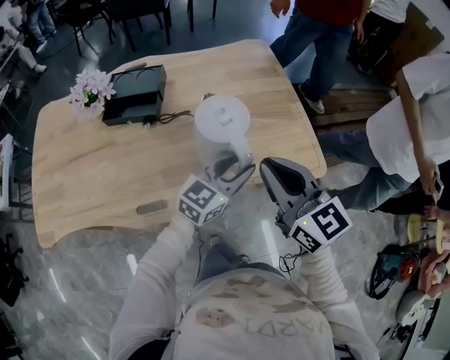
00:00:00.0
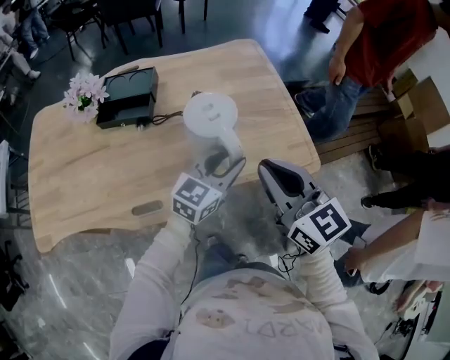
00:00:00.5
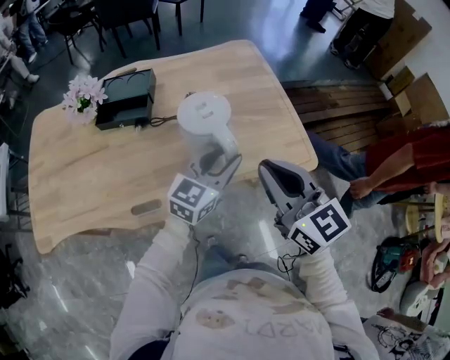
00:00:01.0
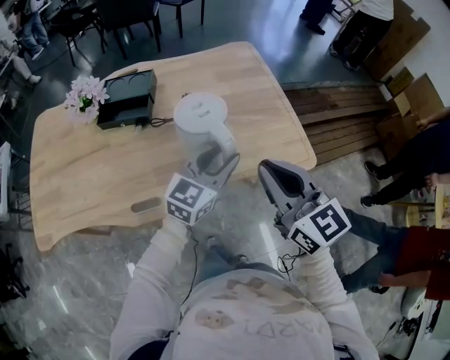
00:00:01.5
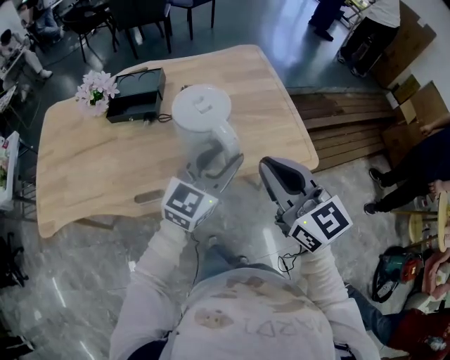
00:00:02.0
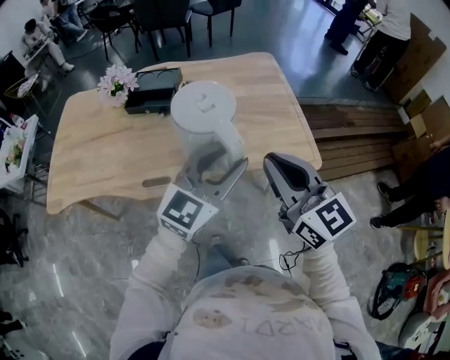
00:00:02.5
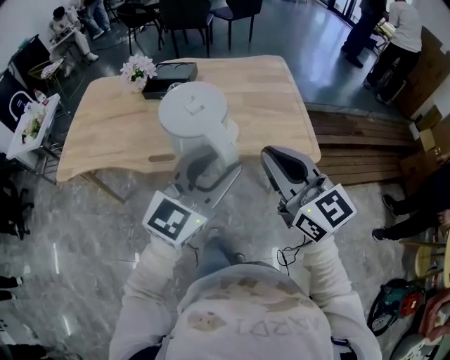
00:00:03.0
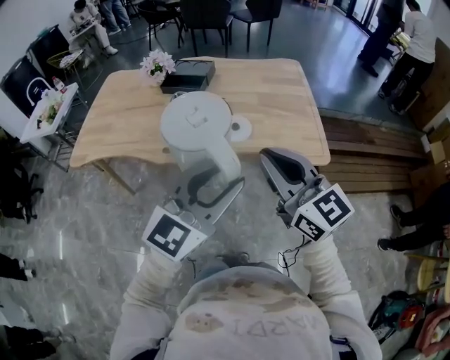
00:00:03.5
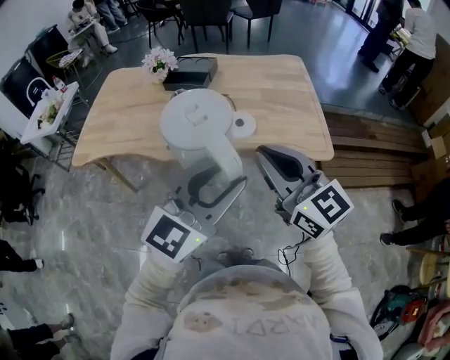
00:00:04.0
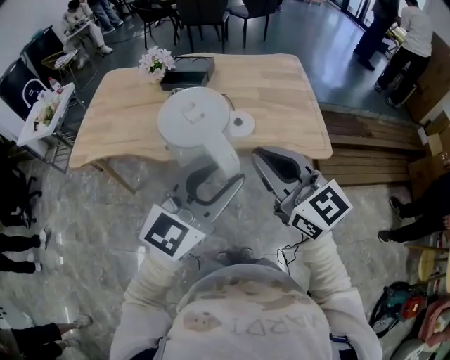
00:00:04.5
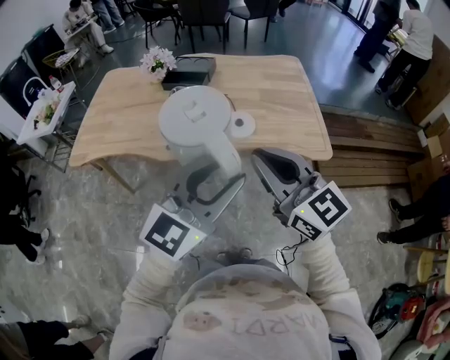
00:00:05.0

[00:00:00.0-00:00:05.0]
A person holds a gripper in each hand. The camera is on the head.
00:00:00.0 to 00:00:02.5: The right gripper heads backward, upward and to the right, covering about 15 cm. Meanwhile the left gripper is displaced upward and backward by some 20 cm, and turns by roughly 20 degrees.
00:00:02.5 to 00:00:05.0: The left gripper is displaced backward by some 20 cm. Meanwhile the right gripper shifts about 15 cm backward and to the left.

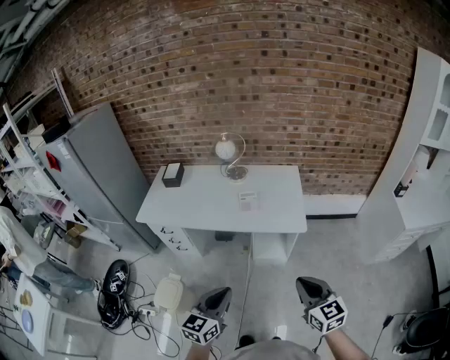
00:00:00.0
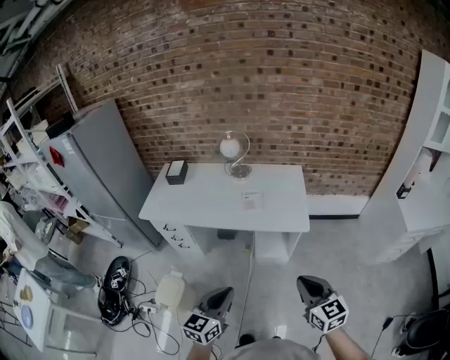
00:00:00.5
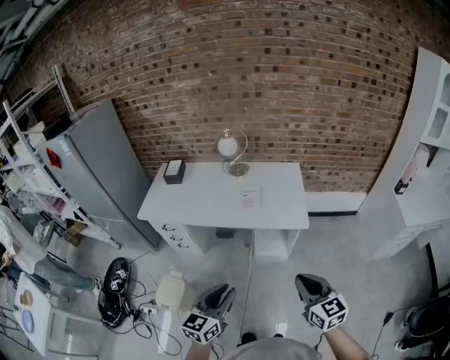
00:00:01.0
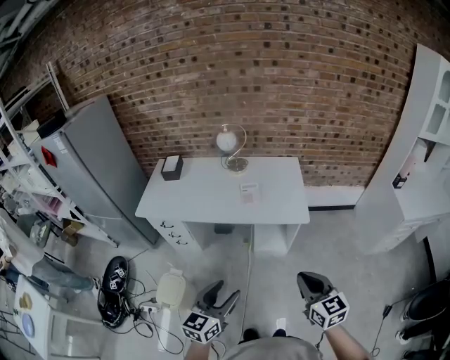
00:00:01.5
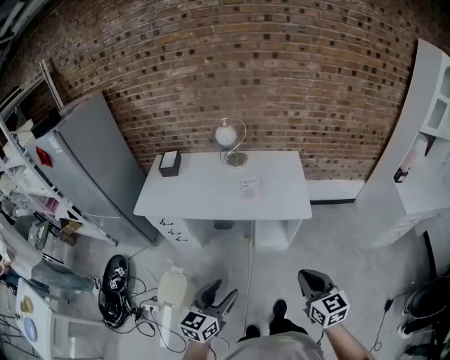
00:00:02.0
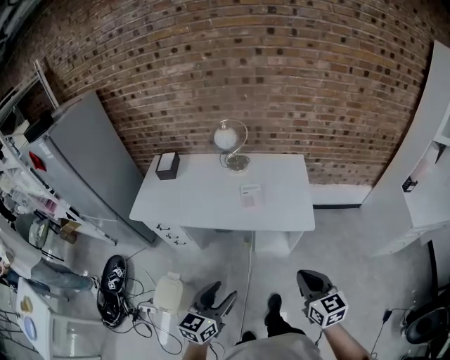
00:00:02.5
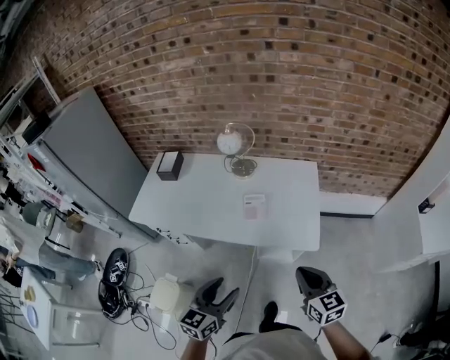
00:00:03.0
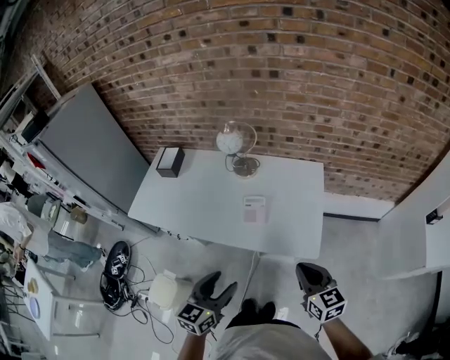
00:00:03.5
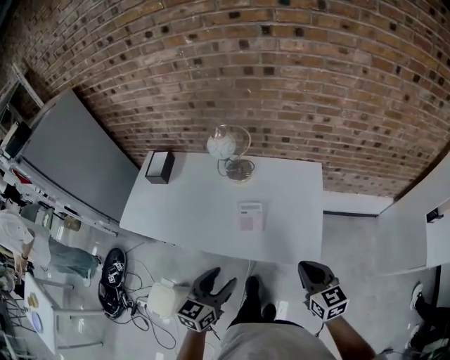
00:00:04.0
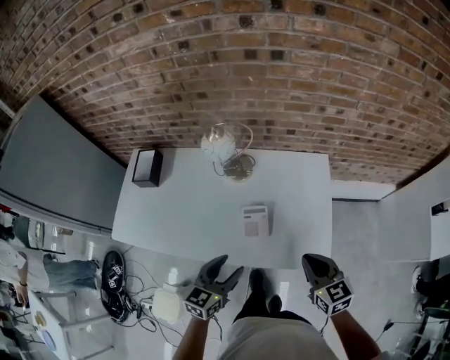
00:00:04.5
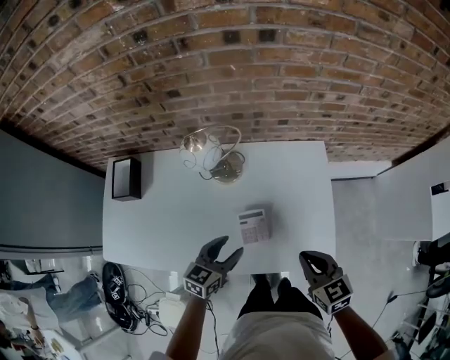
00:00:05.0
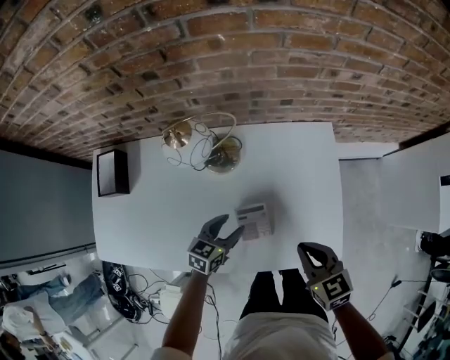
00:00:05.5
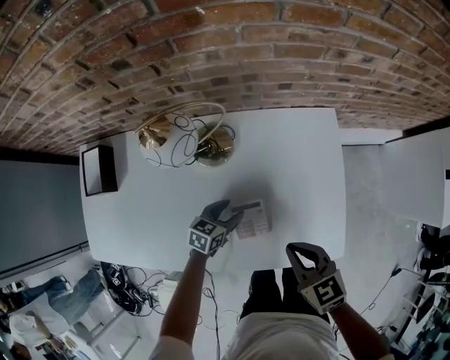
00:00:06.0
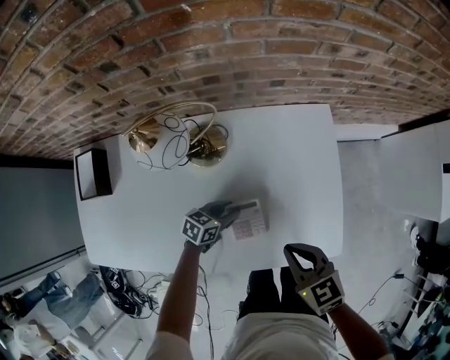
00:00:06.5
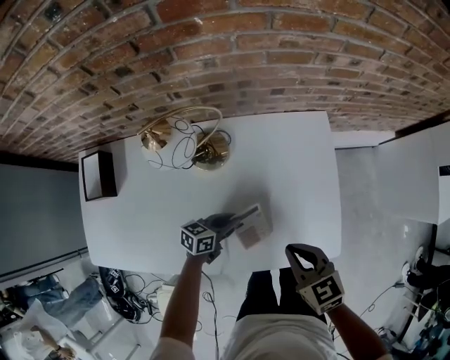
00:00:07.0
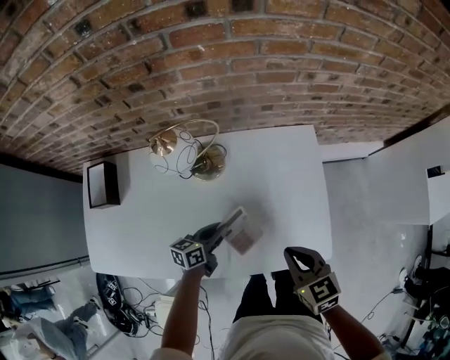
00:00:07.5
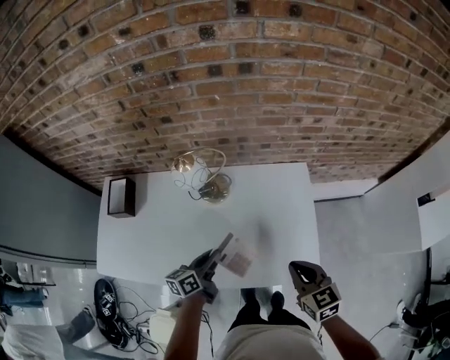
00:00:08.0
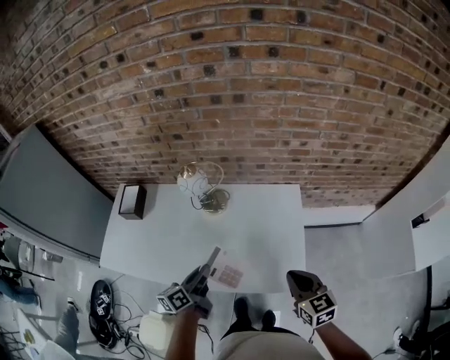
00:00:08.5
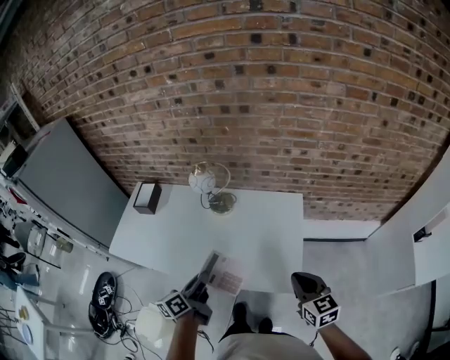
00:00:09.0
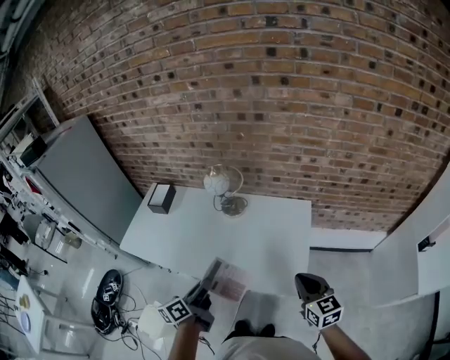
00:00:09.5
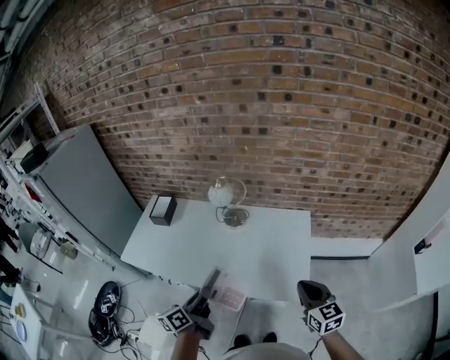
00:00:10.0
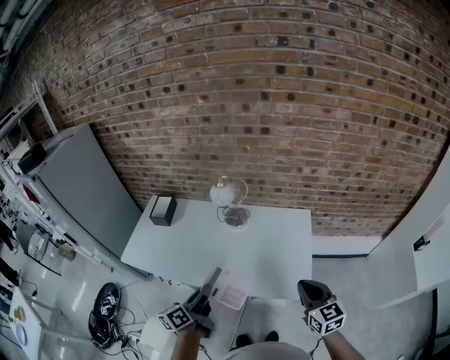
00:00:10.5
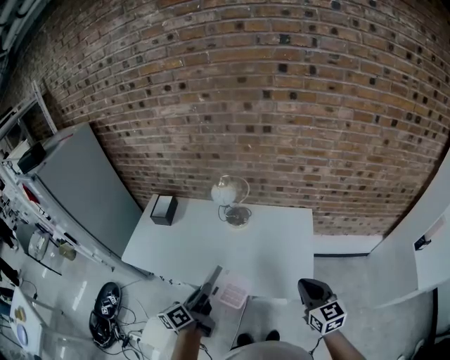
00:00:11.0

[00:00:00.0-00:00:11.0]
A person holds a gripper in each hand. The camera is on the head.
00:00:00.0 to 00:00:02.0: The two grippers go about 5 cm to the left. The left gripper opens.
00:00:02.0 to 00:00:03.5: Both grippers move forward, some 30 cm.
00:00:03.5 to 00:00:05.5: The left gripper goes about 50 cm forward and downward, and swivels some 30 degrees. Meanwhile the right gripper is displaced forward and downward by some 30 cm.
00:00:05.5 to 00:00:07.5: The left gripper goes downward and returns, approximately 10 cm each way, swivels about 20 degrees, and closes.
00:00:07.5 to 00:00:09.0: The left gripper goes some 35 cm upward and backward, and turns by approximately 40 degrees; the right gripper moves to the right, upward and backward, roughly 25 cm.
00:00:09.0 to 00:00:11.0: The left gripper shifts roughly 10 cm to the left and backward. The right gripper goes some 5 cm to the left.

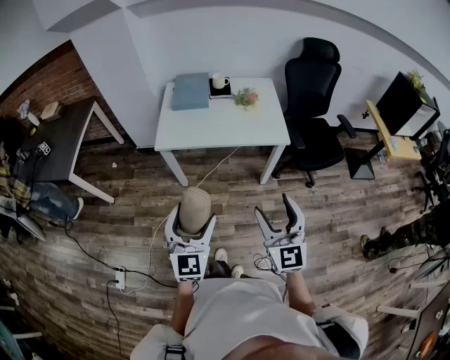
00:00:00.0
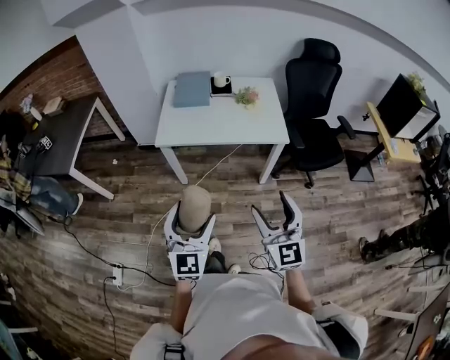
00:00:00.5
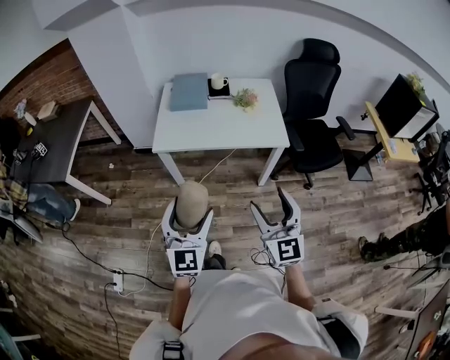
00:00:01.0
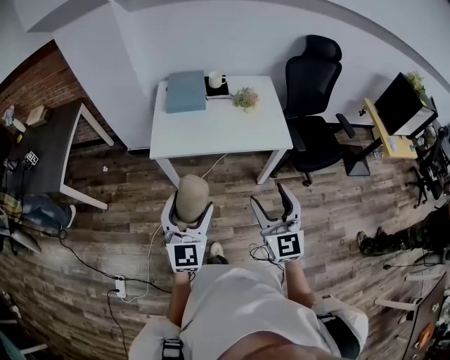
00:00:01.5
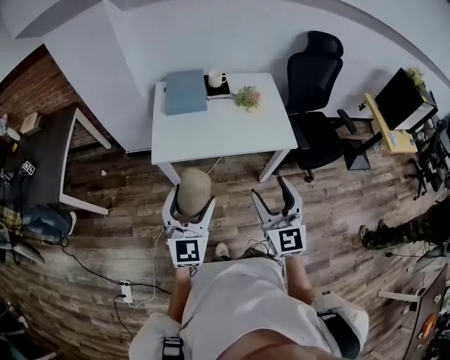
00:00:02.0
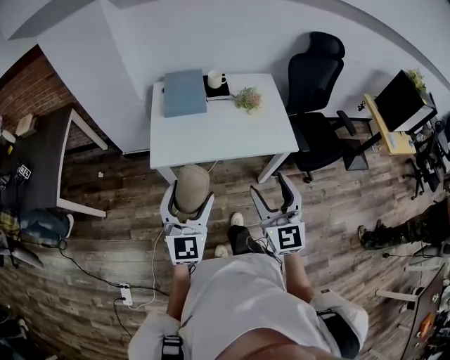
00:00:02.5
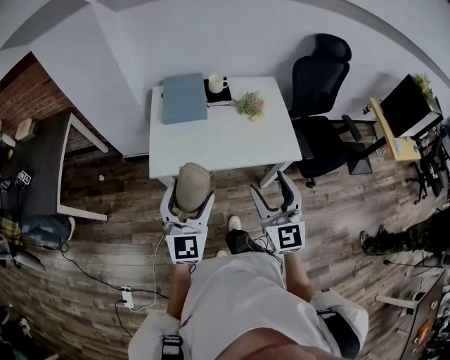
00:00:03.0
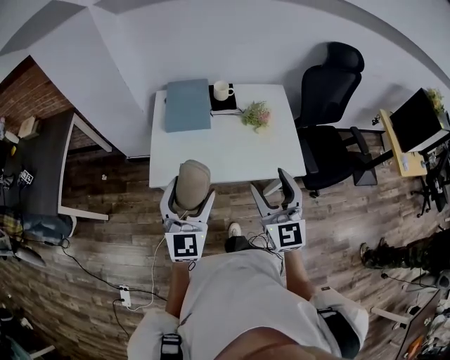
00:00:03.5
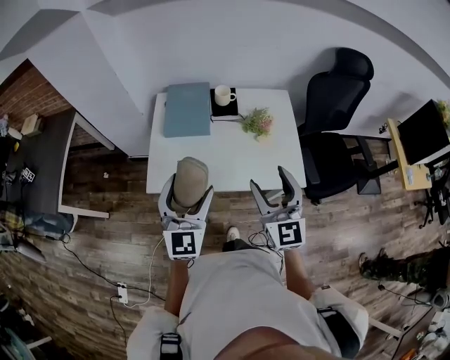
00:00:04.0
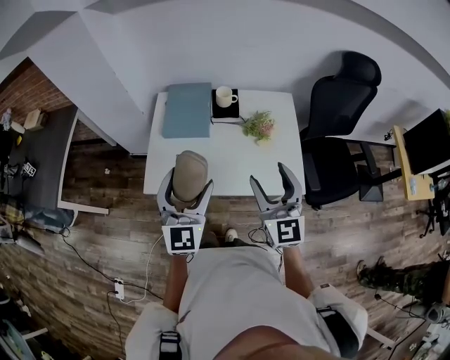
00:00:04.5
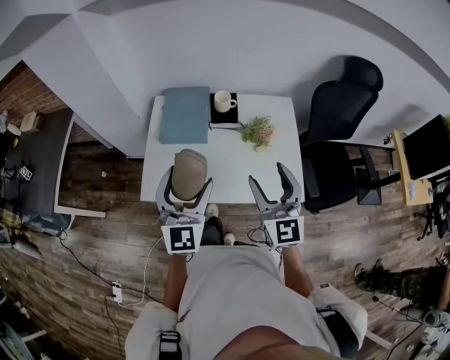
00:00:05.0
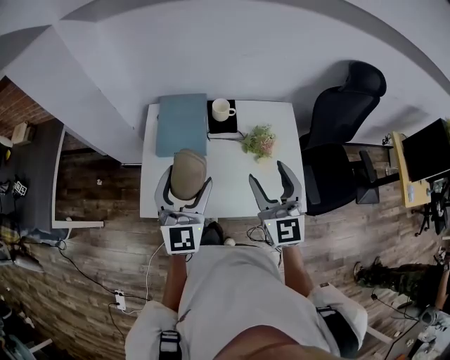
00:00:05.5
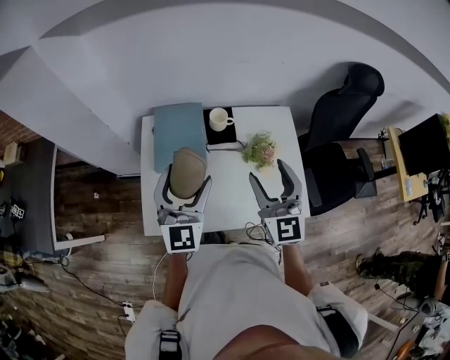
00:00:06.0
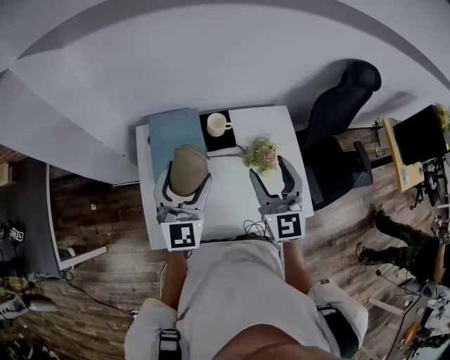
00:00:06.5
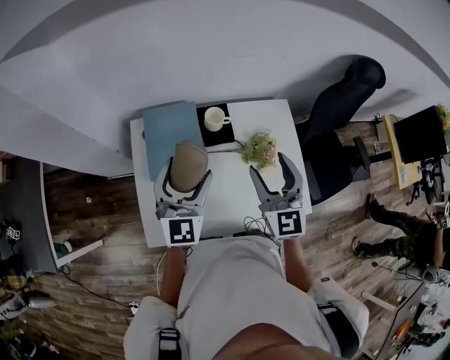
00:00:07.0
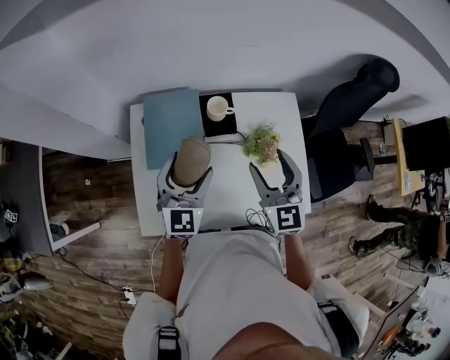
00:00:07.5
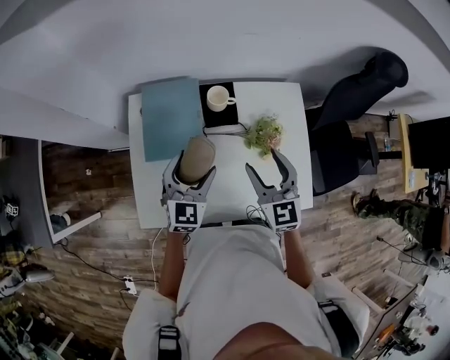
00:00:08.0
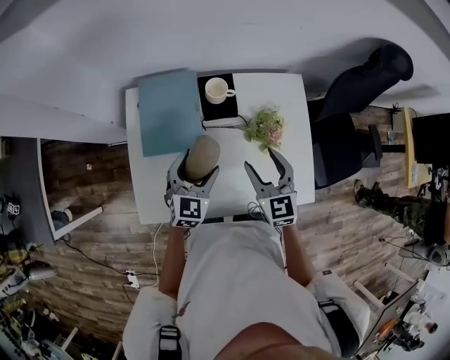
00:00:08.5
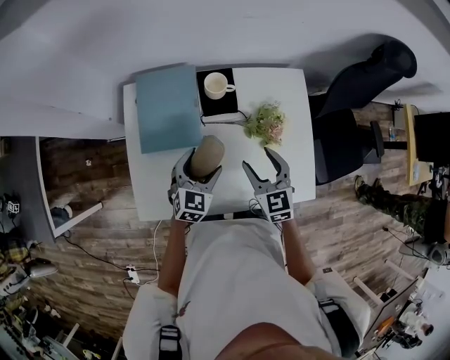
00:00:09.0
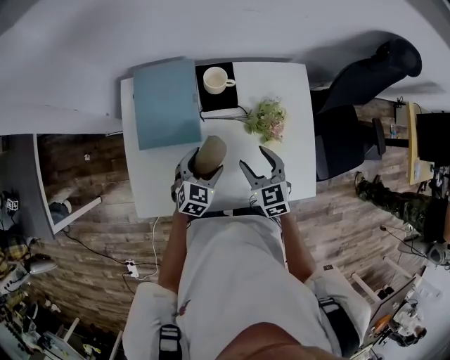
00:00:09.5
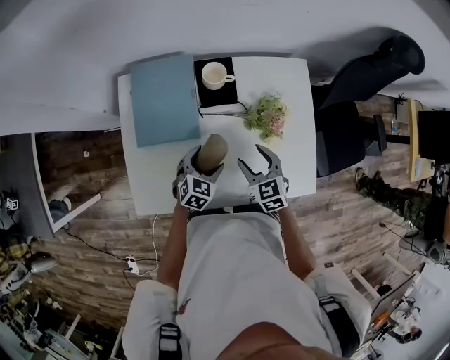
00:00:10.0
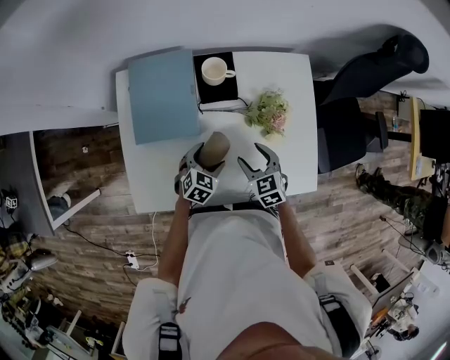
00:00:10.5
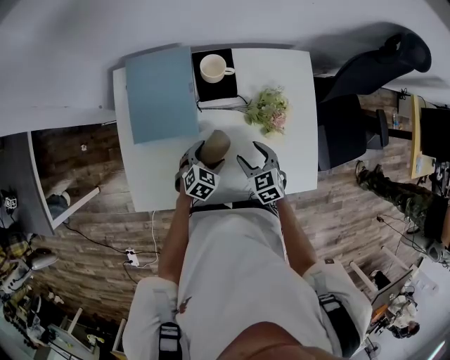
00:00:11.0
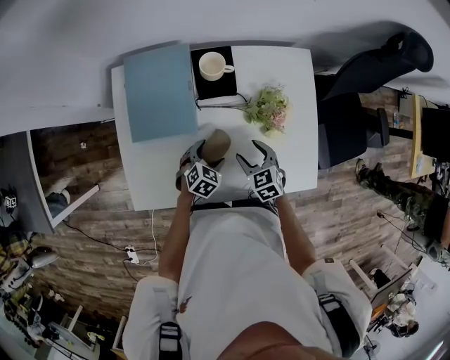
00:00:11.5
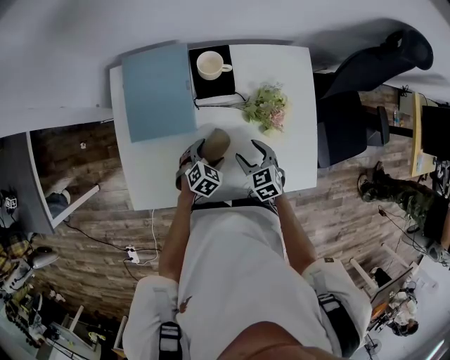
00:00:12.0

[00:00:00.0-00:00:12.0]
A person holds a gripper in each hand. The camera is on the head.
00:00:00.0 to 00:00:02.0: The left gripper travels forward by about 20 cm, while the right gripper heads forward and to the left, covering approximately 20 cm.
00:00:02.0 to 00:00:04.0: The grippers both shift forward by about 25 cm.
00:00:04.0 to 00:00:06.0: Both grippers travel together forward, roughly 20 cm.
00:00:06.0 to 00:00:08.0: Both grippers travel together downward and forward, some 15 cm. The left gripper turns by some 20 degrees.
00:00:08.0 to 00:00:10.0: Both grippers move downward, roughly 20 cm. The right gripper rotates approximately 20 degrees, while the left gripper rotates roughly 30 degrees.
00:00:10.0 to 00:00:12.0: The two grippers go roughly 10 cm downward.
